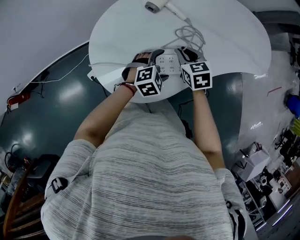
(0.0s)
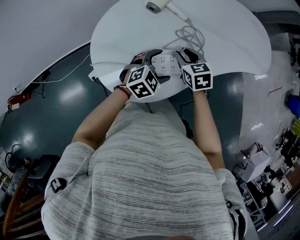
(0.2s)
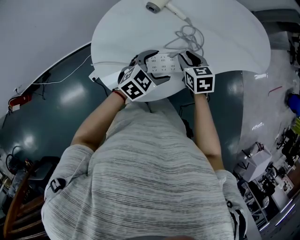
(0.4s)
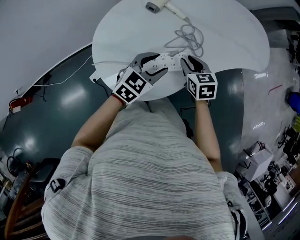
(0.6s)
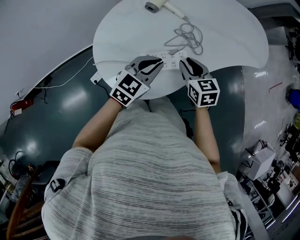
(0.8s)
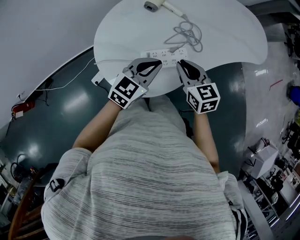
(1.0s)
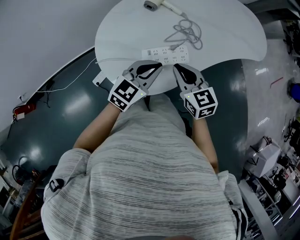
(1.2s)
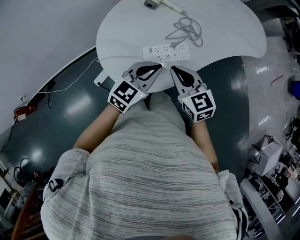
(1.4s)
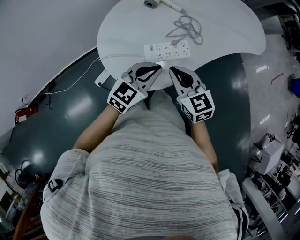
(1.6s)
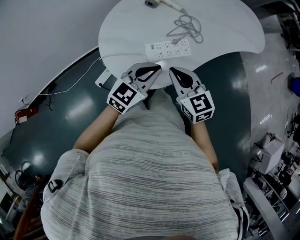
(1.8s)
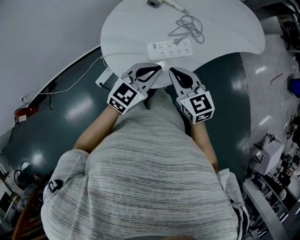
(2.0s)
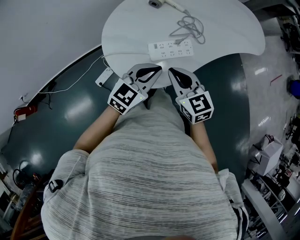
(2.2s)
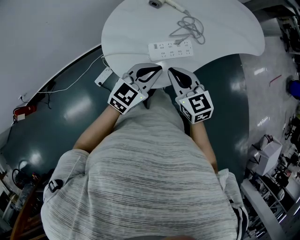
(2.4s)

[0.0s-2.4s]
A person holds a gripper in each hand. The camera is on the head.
0.0s to 1.2s: The right gripper travels backward and upward by some 15 cm, while the left gripper moves upward and backward, roughly 15 cm, tips its fingers upward by approximately 30 degrees, and closes.
1.2s to 2.4s: The grippers both shift backward by some 5 cm.

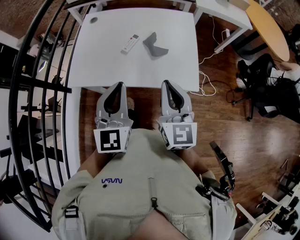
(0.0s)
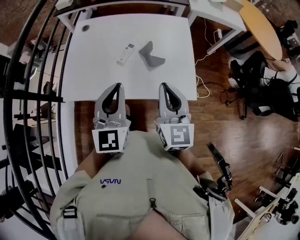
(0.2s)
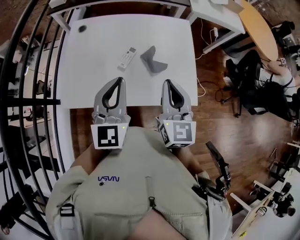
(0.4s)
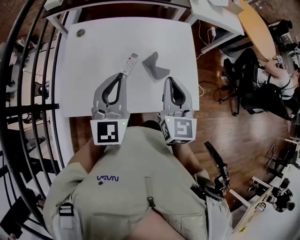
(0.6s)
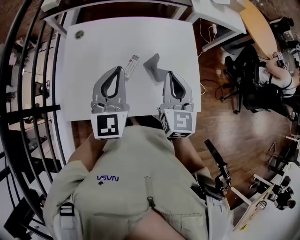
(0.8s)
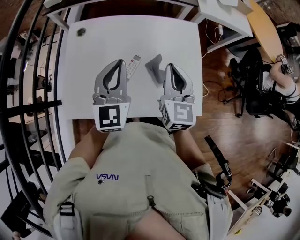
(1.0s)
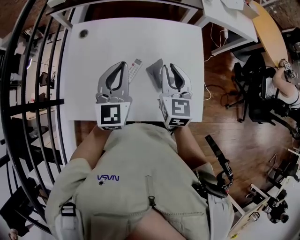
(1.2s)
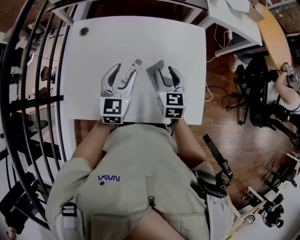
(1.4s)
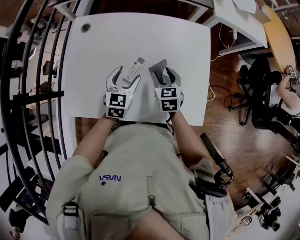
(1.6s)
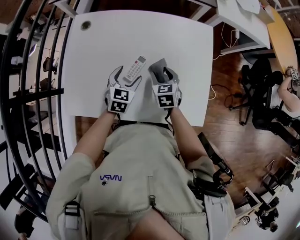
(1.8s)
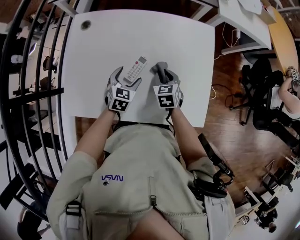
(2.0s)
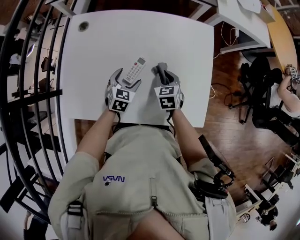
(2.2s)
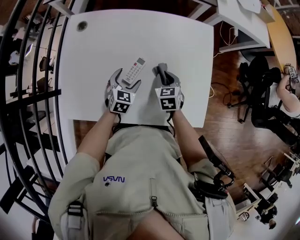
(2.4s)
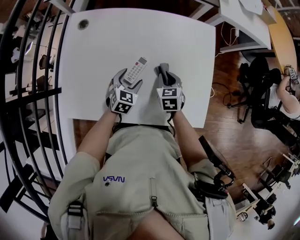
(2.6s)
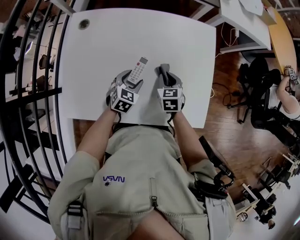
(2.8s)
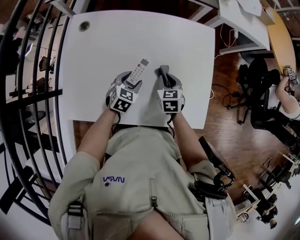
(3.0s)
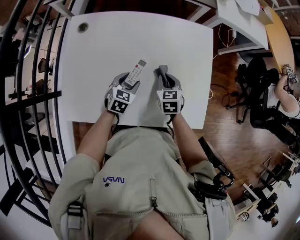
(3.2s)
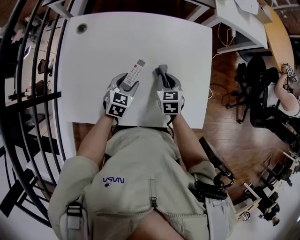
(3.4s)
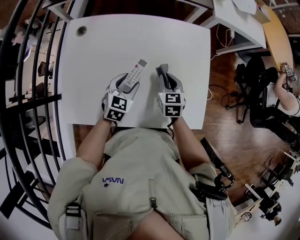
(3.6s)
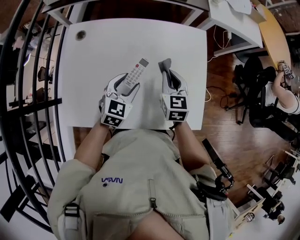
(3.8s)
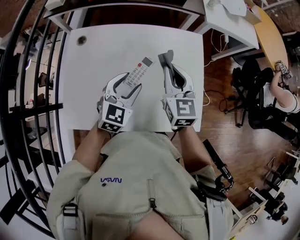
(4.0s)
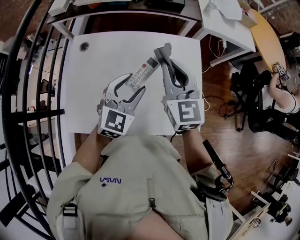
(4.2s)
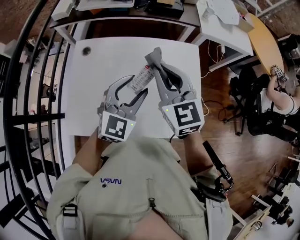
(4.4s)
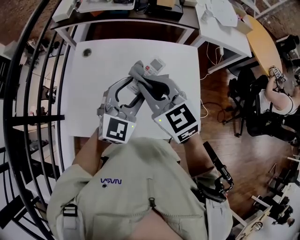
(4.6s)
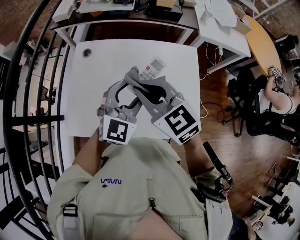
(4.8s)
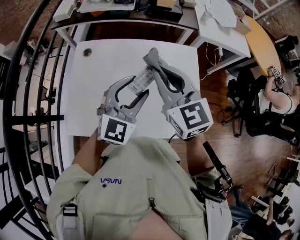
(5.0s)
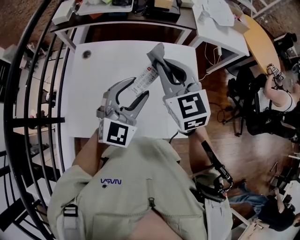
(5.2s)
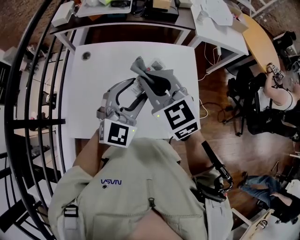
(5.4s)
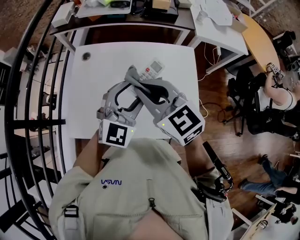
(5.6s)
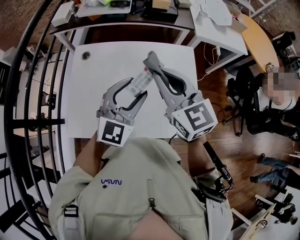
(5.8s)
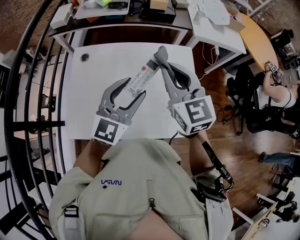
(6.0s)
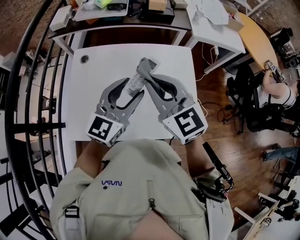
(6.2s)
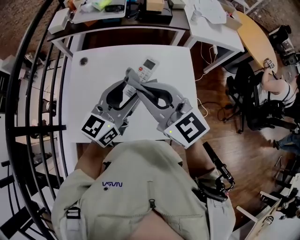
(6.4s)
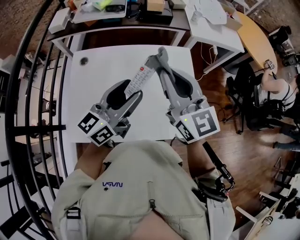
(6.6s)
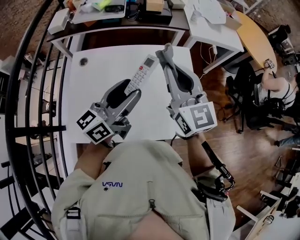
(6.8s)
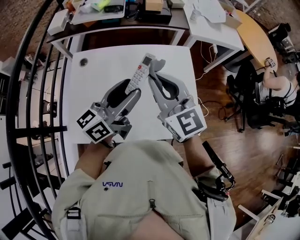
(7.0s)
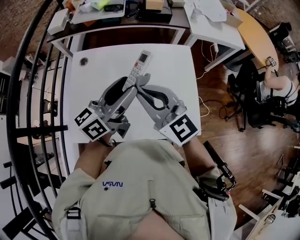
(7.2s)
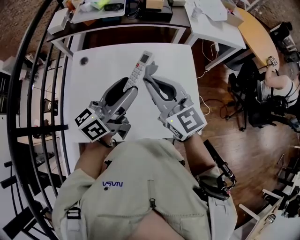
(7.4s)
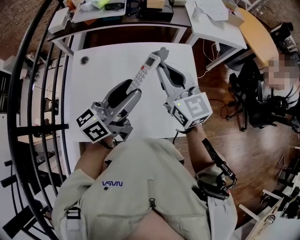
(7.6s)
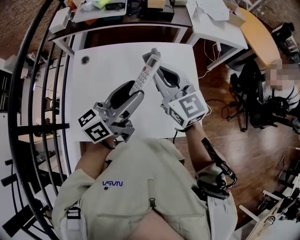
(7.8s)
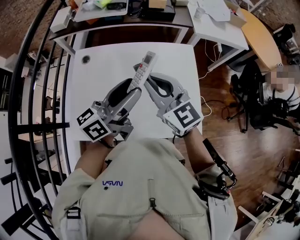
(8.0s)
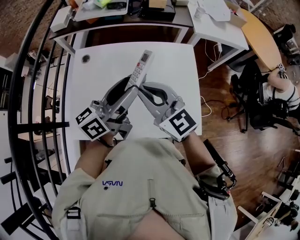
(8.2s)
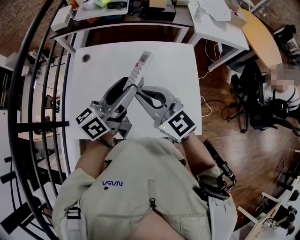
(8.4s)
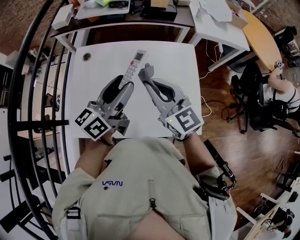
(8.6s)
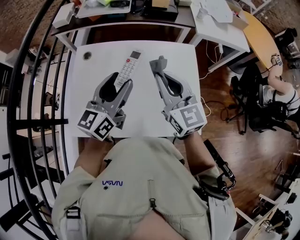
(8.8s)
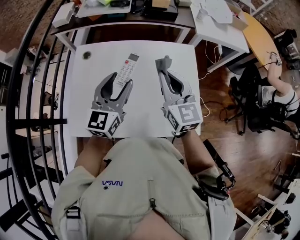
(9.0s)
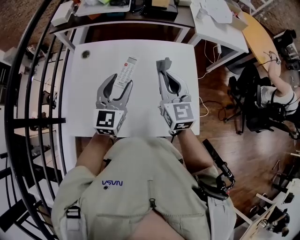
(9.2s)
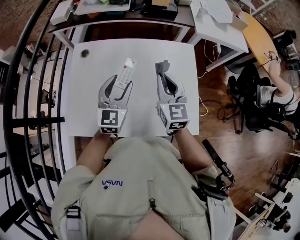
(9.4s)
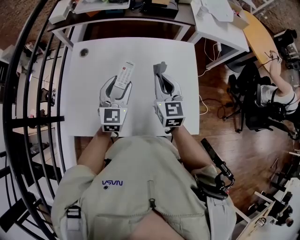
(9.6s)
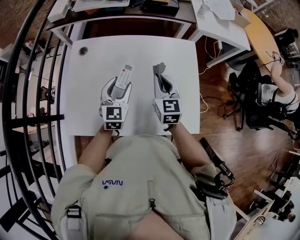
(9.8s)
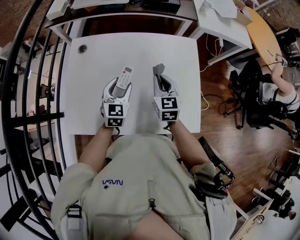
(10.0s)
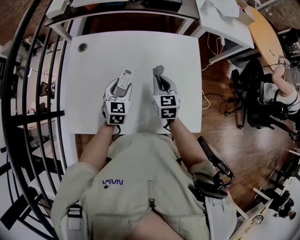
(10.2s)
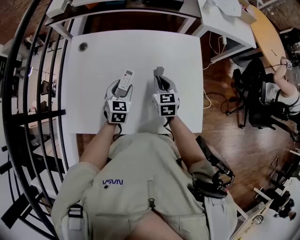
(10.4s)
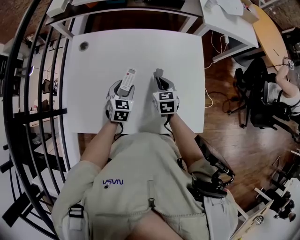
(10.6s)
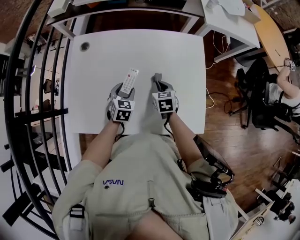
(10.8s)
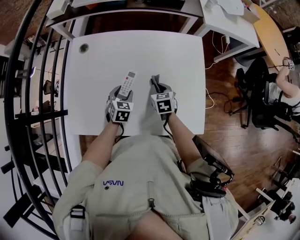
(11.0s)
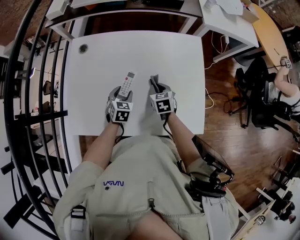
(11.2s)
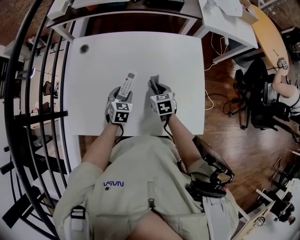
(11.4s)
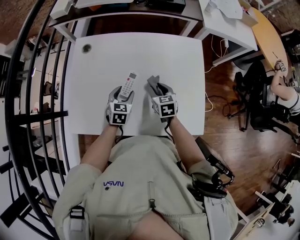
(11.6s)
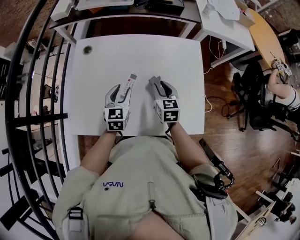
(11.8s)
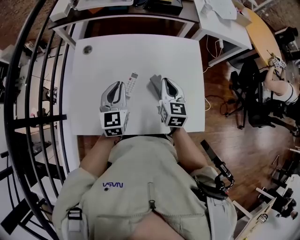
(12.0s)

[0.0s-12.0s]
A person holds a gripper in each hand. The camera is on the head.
0.0s to 1.6s: Both grippers move forward and downward, about 35 cm. The right gripper angles its fingers downward, by approximately 30 degrees, and opens up; the left gripper turns by roughly 30 degrees, and opens.
1.6s to 3.0s: The left gripper heads downward, covering roughly 10 cm, and turns by about 20 degrees. The right gripper travels downward by approximately 5 cm, and closes.
3.0s to 4.4s: Both grippers travel together upward, roughly 30 cm. The right gripper points its fingers about 30 degrees further upward; the left gripper tilts its fingers roughly 30 degrees upward.
4.4s to 6.0s: The right gripper swings left and right, about 10 cm each way, with 3 reversals. The left gripper moves some 5 cm.
6.0s to 7.6s: The right gripper swings left and right, roughly 10 cm each way, with 3 reversals; the left gripper rolls counterclockwise, seen from behind, by some 50 degrees.
7.6s to 9.0s: The right gripper travels to the left and back again, about 5 cm each way. Meanwhile the left gripper heads downward, covering some 5 cm, and turns by about 50 degrees.
9.0s to 10.4s: Both grippers move downward, about 25 cm. The left gripper points its fingers roughly 30 degrees further downward. Meanwhile the right gripper changes its angle by some 30 degrees.
10.4s to 12.0s: The left gripper shifts about 15 cm upward, changes its angle by some 20 degrees, and closes; the right gripper heads upward, covering approximately 10 cm, and opens, then closes once more.

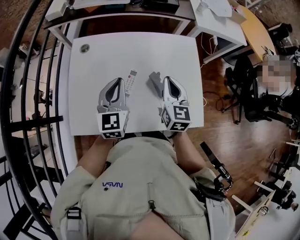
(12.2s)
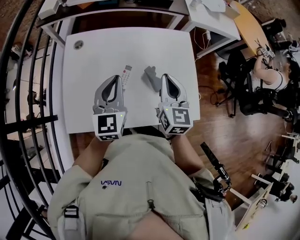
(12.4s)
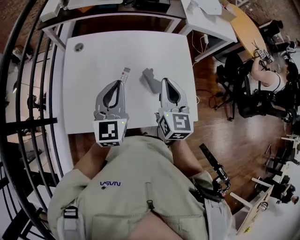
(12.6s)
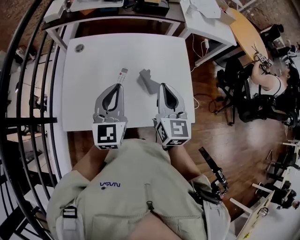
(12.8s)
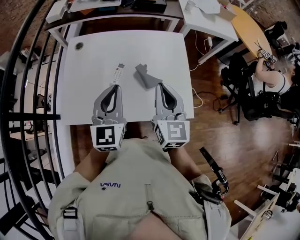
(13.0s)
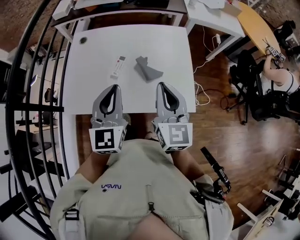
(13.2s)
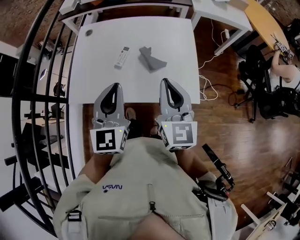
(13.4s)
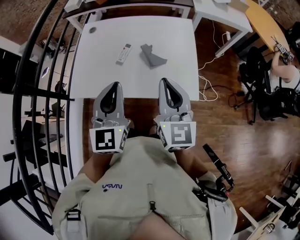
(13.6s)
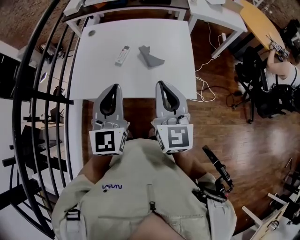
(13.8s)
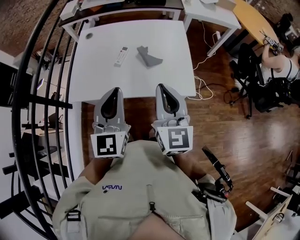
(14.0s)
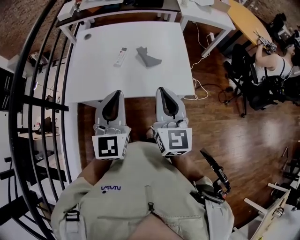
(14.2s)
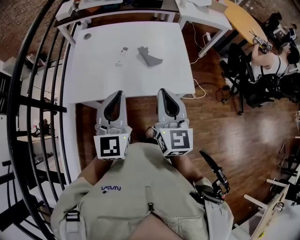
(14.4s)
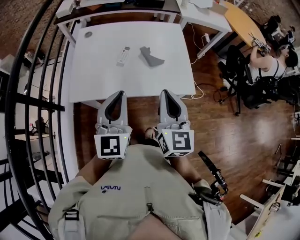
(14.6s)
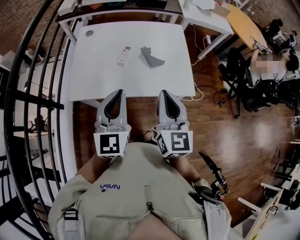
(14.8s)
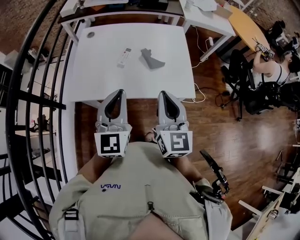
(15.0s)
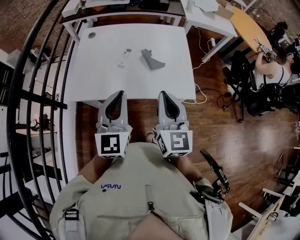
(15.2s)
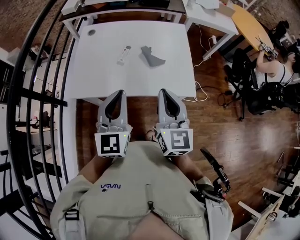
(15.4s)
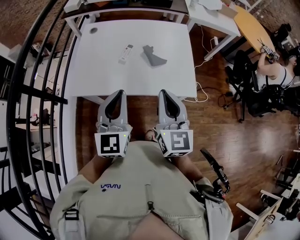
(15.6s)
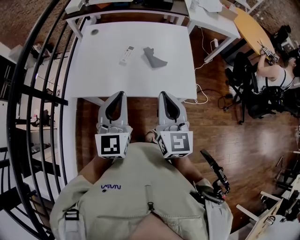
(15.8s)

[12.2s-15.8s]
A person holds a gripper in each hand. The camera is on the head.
12.2s to 14.0s: The left gripper shifts roughly 30 cm backward. The right gripper shifts roughly 30 cm backward and upward.
14.0s to 15.8s: There are only small adjustments of the grippers.

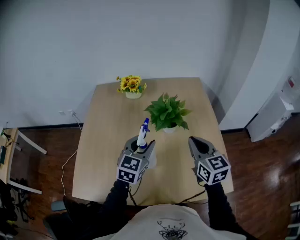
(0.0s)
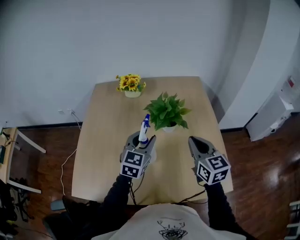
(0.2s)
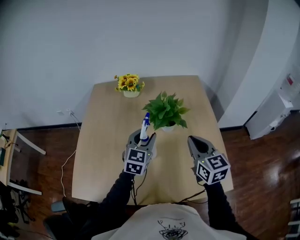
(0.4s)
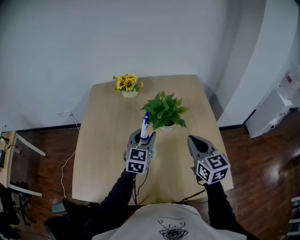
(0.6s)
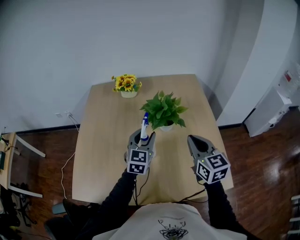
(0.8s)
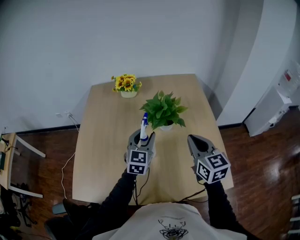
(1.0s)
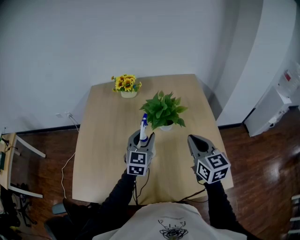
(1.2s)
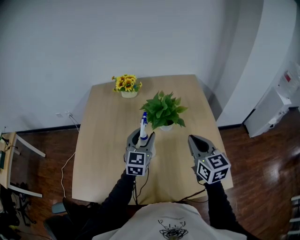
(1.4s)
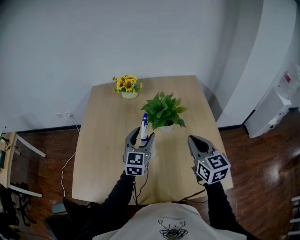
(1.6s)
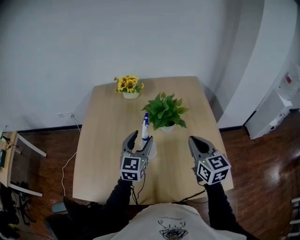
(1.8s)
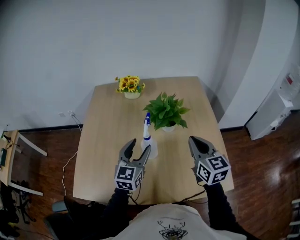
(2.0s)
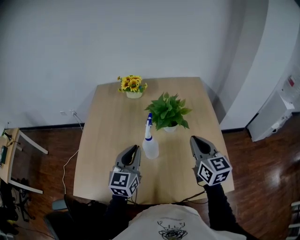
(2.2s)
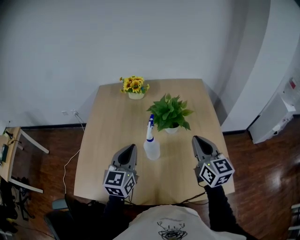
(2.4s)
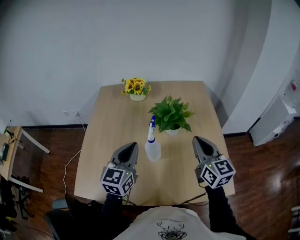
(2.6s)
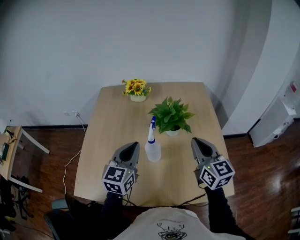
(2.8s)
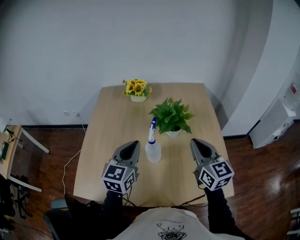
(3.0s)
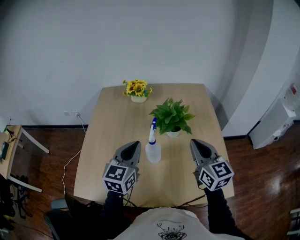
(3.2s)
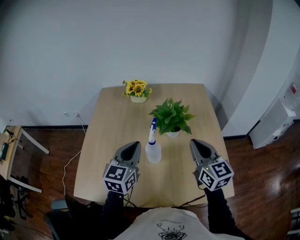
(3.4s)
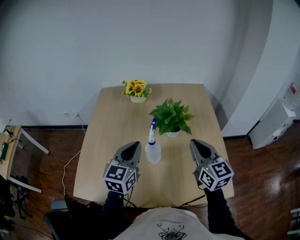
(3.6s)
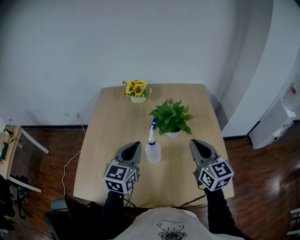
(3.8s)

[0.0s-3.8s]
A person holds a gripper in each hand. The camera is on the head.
0.0s to 1.2s: The left gripper ends up approximately 5 cm from where it was.
1.2s to 2.6s: The left gripper moves backward, to the left and upward, about 15 cm, and closes its fingers.
2.6s to 3.8s: The grippers move only a little.

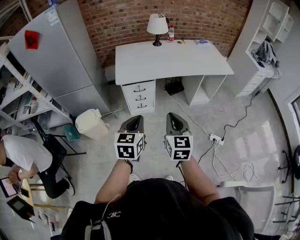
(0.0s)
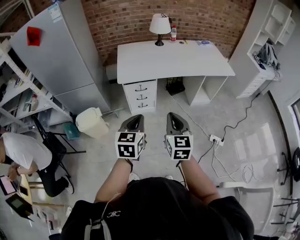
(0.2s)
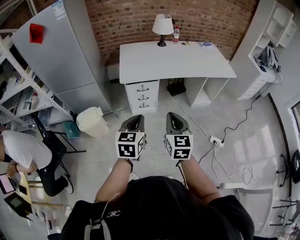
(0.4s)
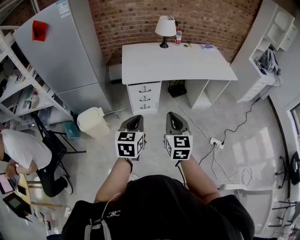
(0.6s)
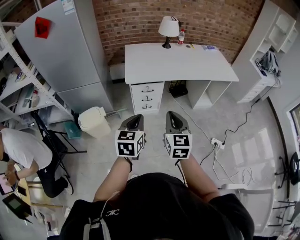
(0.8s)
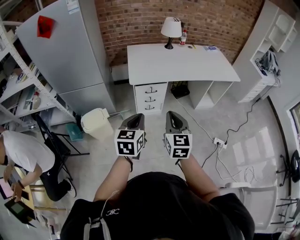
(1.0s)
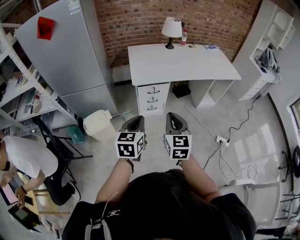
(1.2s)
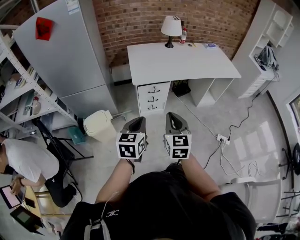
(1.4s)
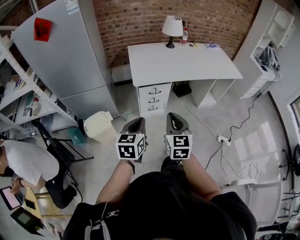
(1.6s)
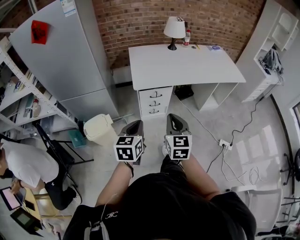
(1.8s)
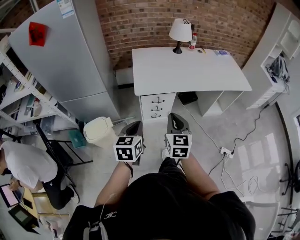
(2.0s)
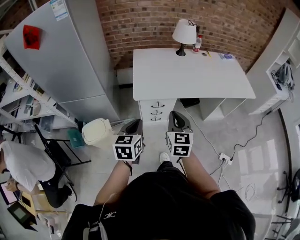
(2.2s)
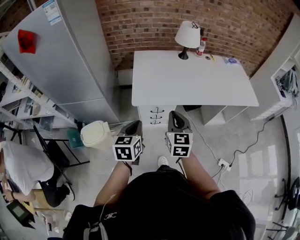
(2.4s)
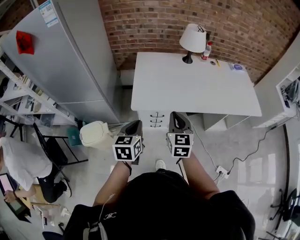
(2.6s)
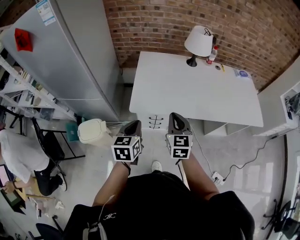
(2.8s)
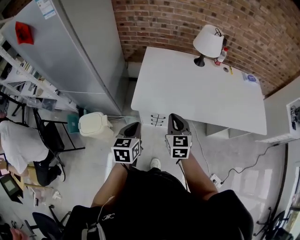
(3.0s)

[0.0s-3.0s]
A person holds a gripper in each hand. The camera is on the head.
0.0s to 1.6s: Both grippers move to the left, approximately 15 cm.
1.6s to 3.0s: Both grippers move forward, roughly 30 cm. The left gripper swivels approximately 20 degrees. Meanwhile the right gripper turns by about 20 degrees.
